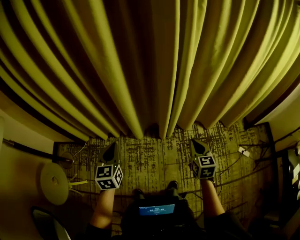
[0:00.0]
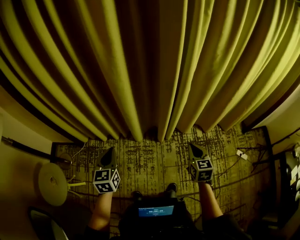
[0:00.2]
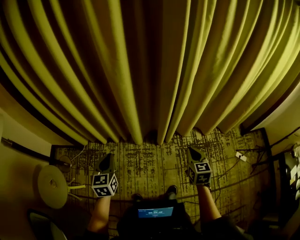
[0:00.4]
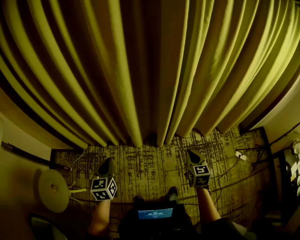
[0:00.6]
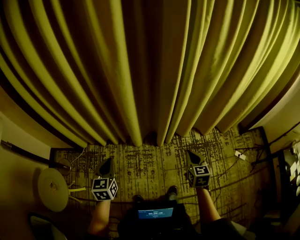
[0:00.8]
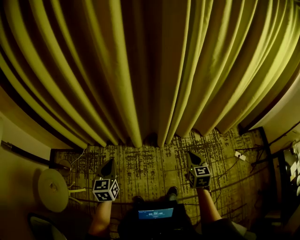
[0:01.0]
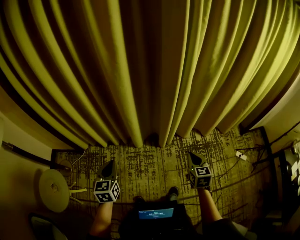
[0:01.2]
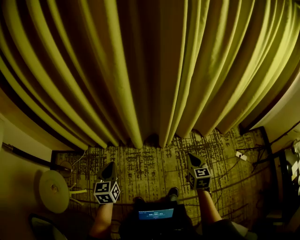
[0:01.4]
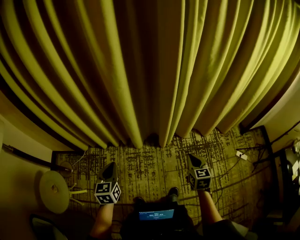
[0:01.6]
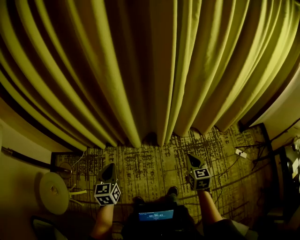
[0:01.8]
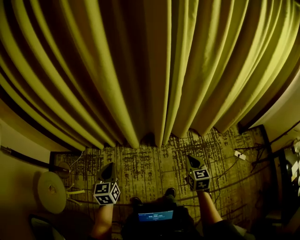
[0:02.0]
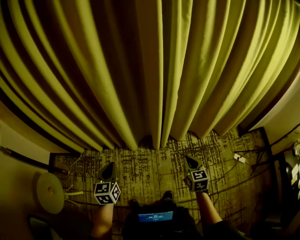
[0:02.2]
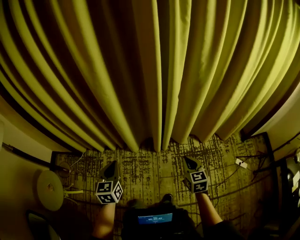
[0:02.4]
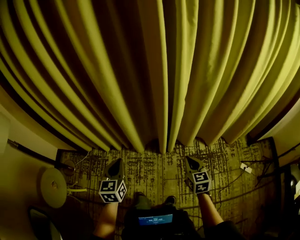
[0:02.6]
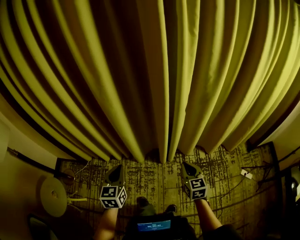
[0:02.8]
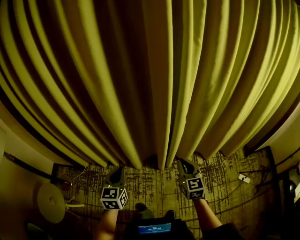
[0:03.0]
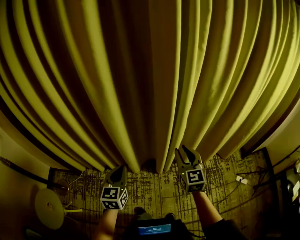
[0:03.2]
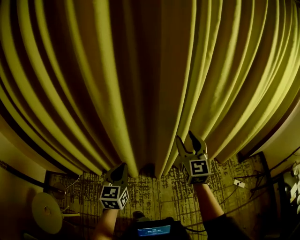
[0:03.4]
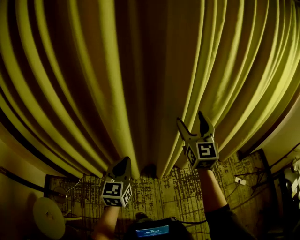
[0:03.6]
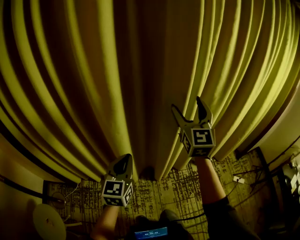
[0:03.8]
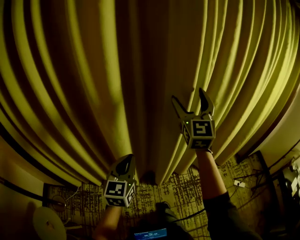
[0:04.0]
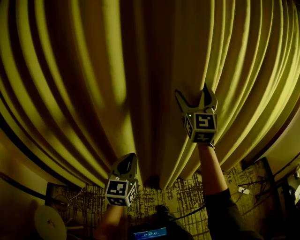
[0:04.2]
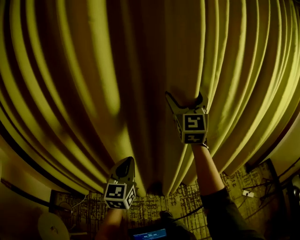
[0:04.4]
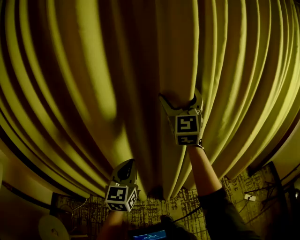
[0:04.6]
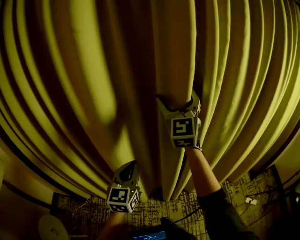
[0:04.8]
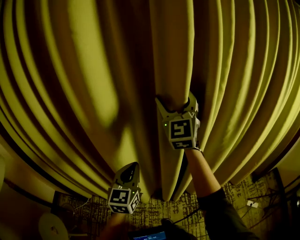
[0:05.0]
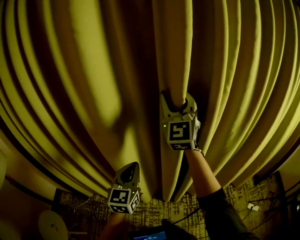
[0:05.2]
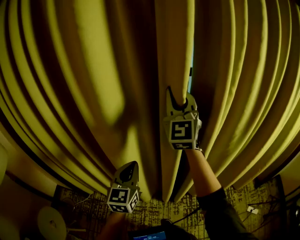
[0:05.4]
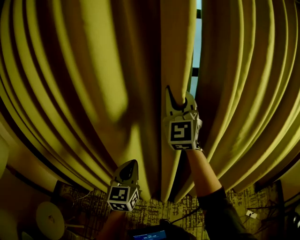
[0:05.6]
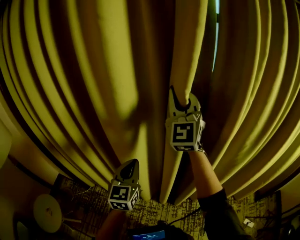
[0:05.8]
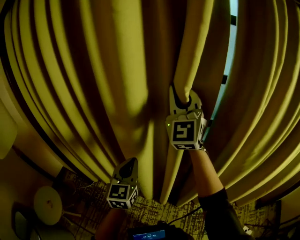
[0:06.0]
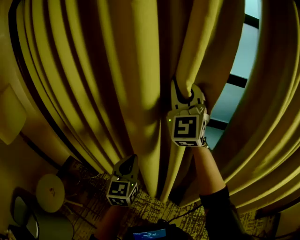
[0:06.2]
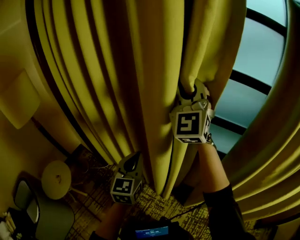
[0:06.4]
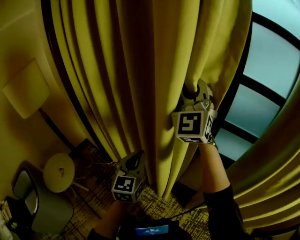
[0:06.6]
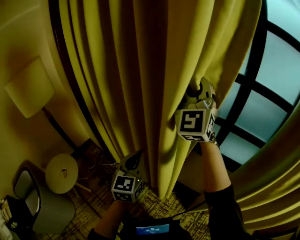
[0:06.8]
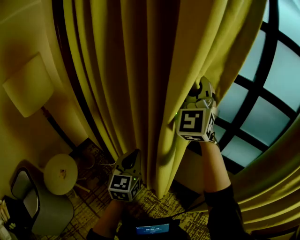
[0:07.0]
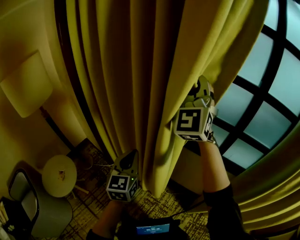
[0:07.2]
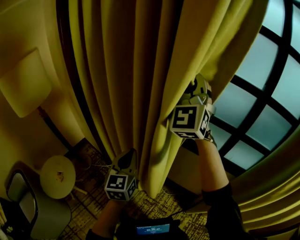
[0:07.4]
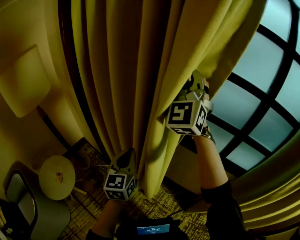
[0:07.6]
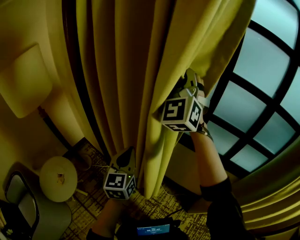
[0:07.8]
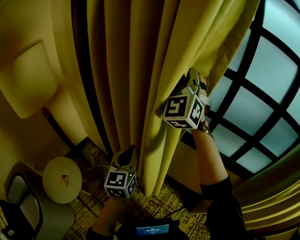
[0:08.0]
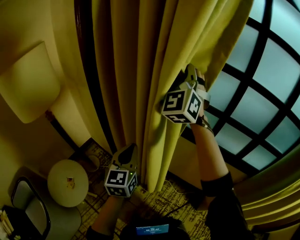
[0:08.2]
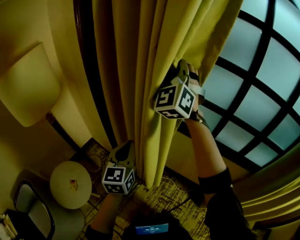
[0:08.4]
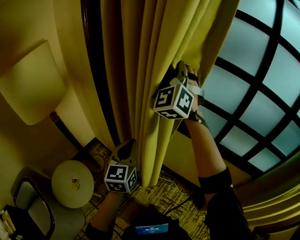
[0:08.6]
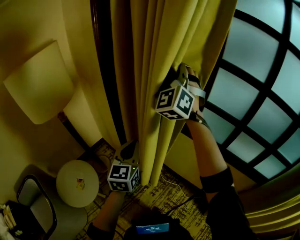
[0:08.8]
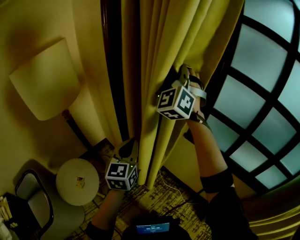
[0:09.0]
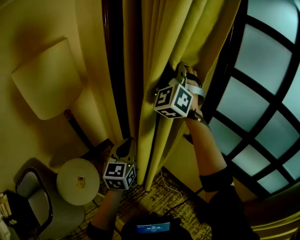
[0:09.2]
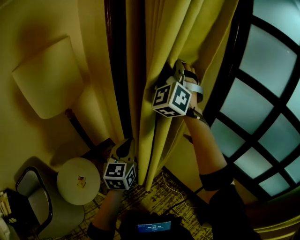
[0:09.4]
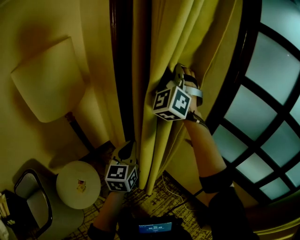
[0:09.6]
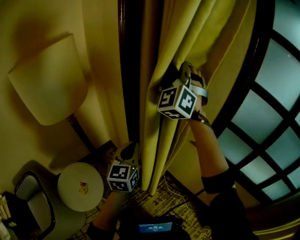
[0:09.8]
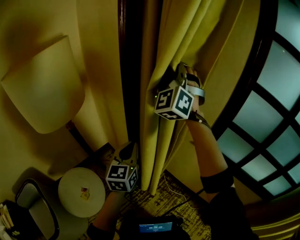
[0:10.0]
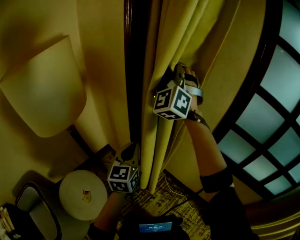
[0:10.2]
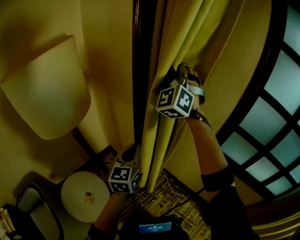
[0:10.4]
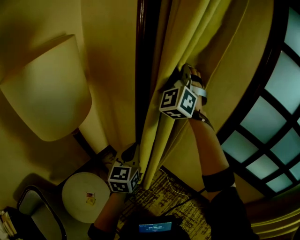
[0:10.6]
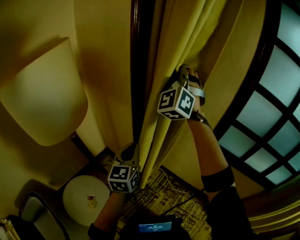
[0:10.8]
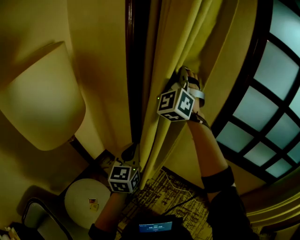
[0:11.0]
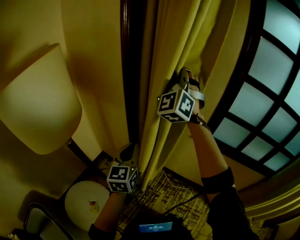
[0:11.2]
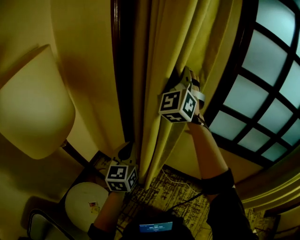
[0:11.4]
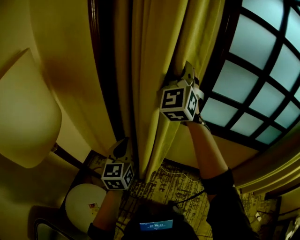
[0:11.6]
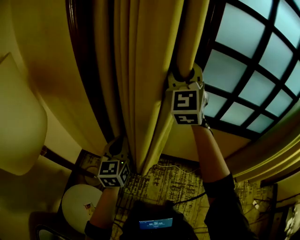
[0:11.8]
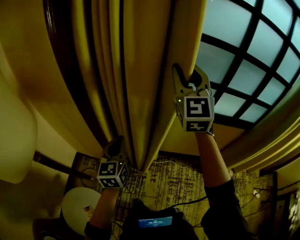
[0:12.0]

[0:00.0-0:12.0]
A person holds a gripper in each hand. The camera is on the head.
0:00.0 to 0:01.6: The left gripper goes roughly 10 cm backward and to the left; the right gripper is displaced backward by approximately 5 cm.
0:01.6 to 0:03.0: The right gripper is displaced forward and upward by about 15 cm; the left gripper travels to the right and forward by approximately 15 cm.
0:03.0 to 0:04.4: The left gripper goes about 25 cm forward and upward; the right gripper moves upward and forward, about 50 cm, tilts its fingers some 40 degrees upward, and opens.
0:04.4 to 0:06.0: The right gripper goes roughly 15 cm to the left and forward, changes its angle by about 20 degrees, and closes its fingers. The left gripper is displaced forward by roughly 5 cm.
0:06.0 to 0:07.6: The two grippers go roughly 35 cm to the left. The left gripper changes its angle by some 20 degrees.
0:07.6 to 0:09.0: The two grippers go some 35 cm to the left and forward.
0:09.0 to 0:10.4: The two grippers go roughly 20 cm to the left and forward.
0:10.4 to 0:12.0: The right gripper moves approximately 30 cm, and turns by some 40 degrees, while the left gripper changes place by approximately 10 cm, and changes its angle by about 30 degrees.

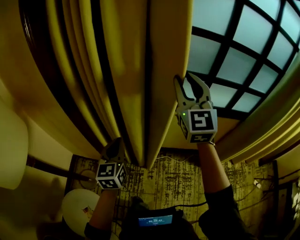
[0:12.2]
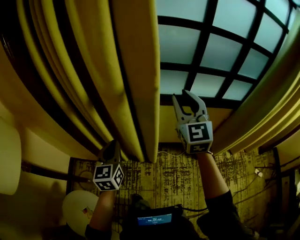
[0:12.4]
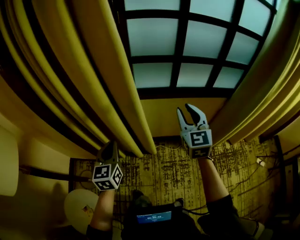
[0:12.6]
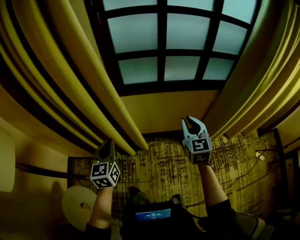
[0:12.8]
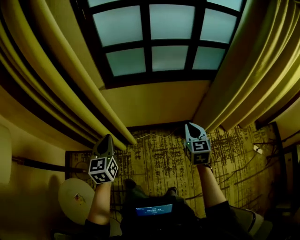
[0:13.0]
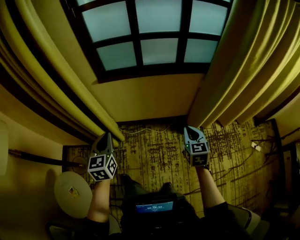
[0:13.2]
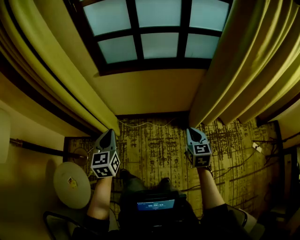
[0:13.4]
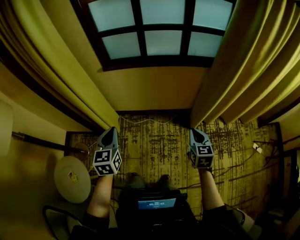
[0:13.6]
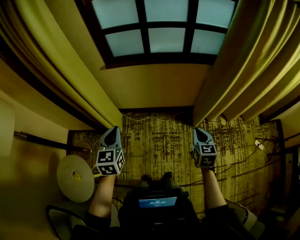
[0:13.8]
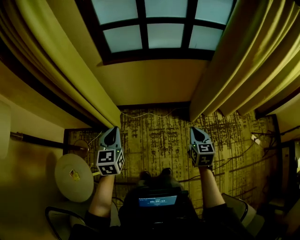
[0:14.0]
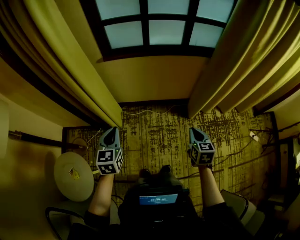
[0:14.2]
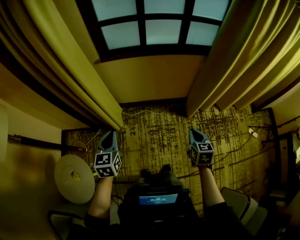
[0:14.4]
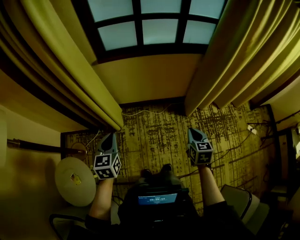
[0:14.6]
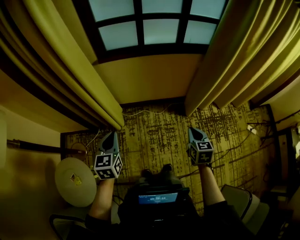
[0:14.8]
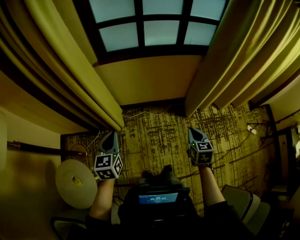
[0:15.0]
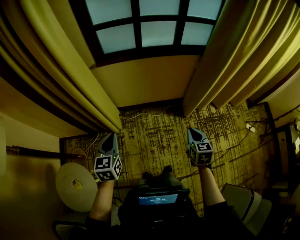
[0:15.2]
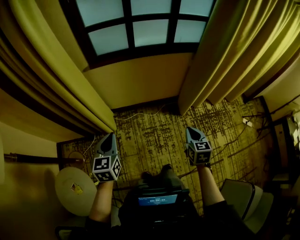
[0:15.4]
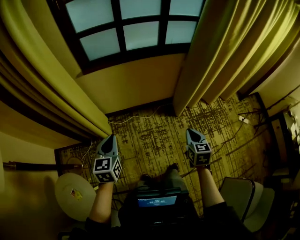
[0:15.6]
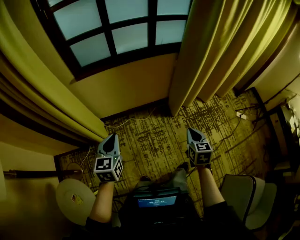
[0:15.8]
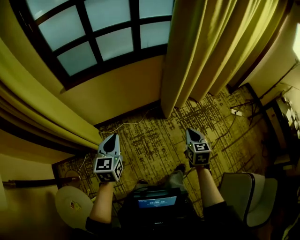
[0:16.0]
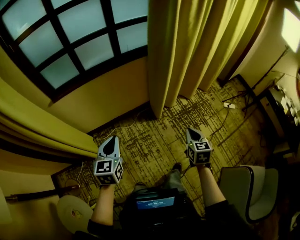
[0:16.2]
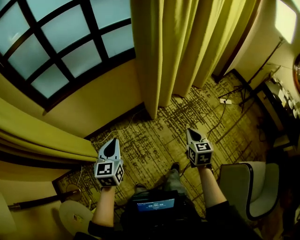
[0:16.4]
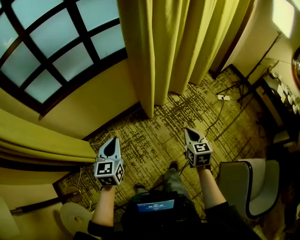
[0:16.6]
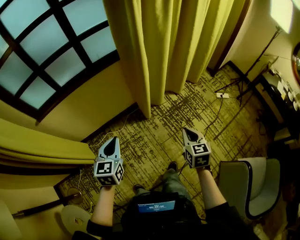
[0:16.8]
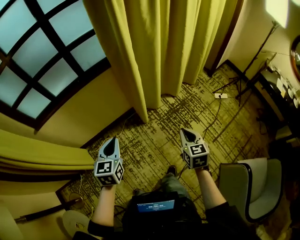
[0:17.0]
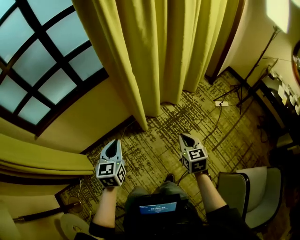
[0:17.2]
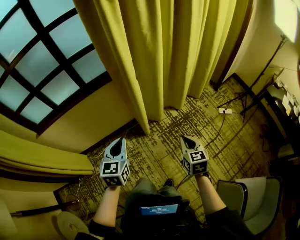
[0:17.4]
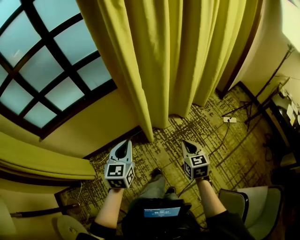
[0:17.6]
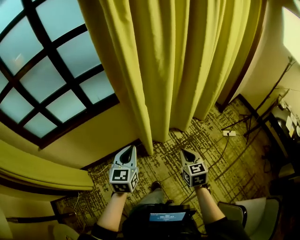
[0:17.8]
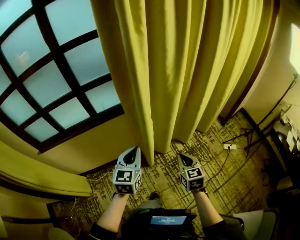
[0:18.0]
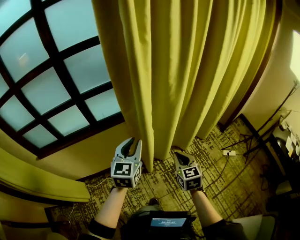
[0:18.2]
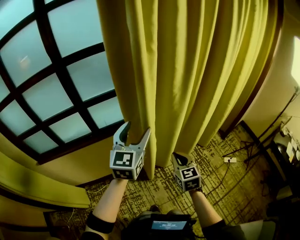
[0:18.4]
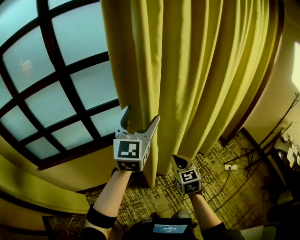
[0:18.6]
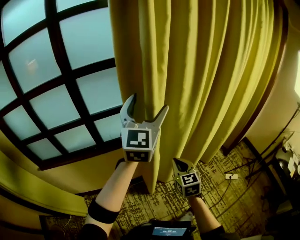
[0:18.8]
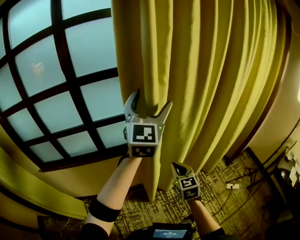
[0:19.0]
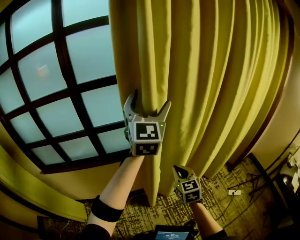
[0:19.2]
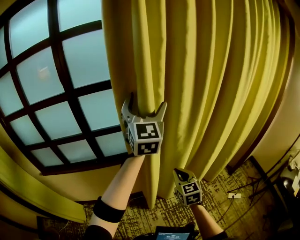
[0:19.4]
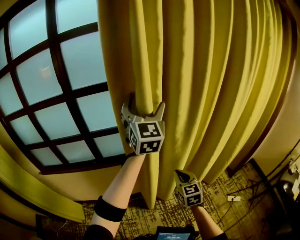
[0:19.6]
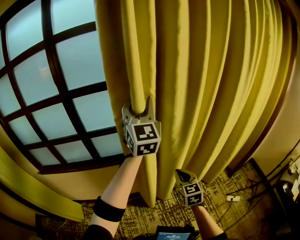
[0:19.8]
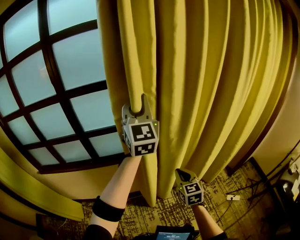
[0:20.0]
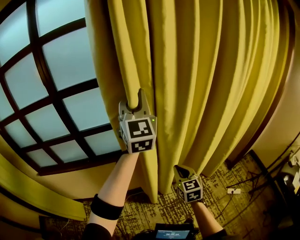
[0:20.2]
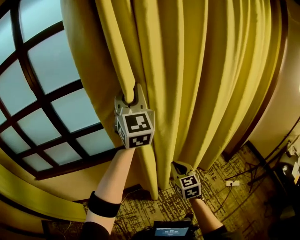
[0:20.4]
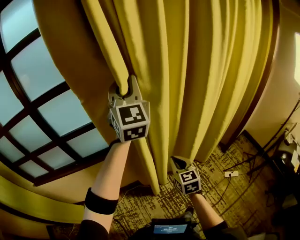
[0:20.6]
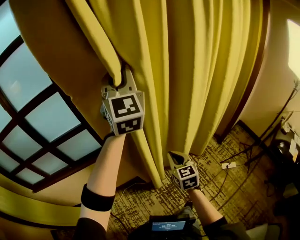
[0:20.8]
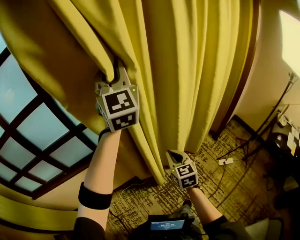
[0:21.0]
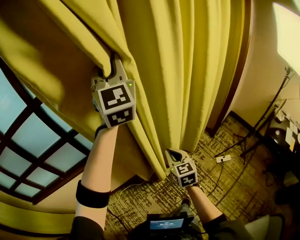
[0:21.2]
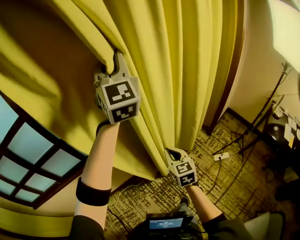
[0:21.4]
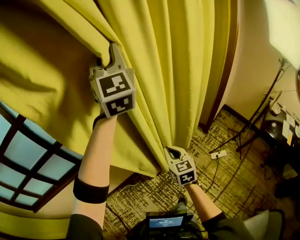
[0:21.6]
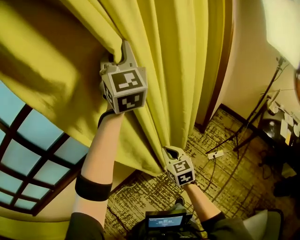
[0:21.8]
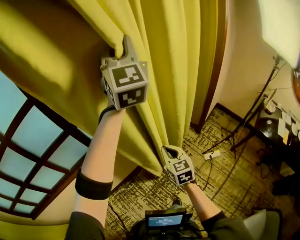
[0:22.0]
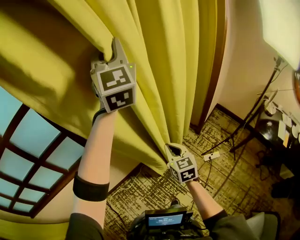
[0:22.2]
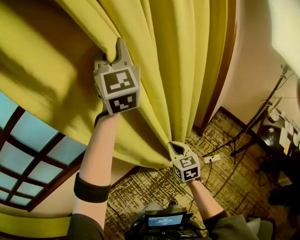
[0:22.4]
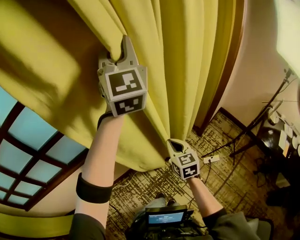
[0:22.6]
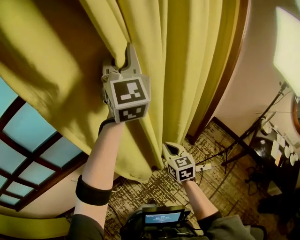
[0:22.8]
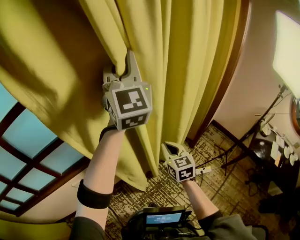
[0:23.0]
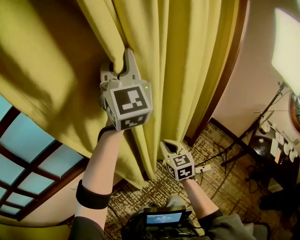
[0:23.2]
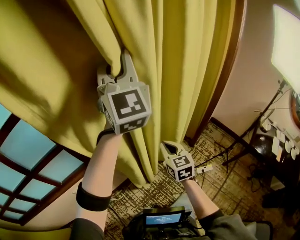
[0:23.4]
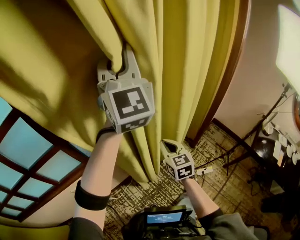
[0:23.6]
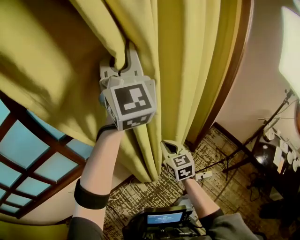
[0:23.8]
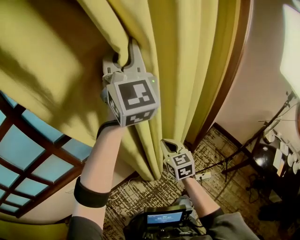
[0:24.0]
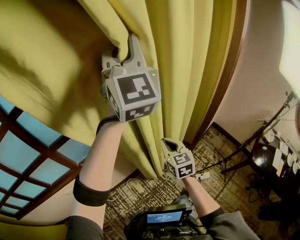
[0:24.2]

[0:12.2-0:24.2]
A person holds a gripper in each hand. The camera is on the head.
0:12.2 to 0:13.8: The right gripper heads to the right, downward and backward, covering roughly 70 cm, angles its fingers downward, by approximately 40 degrees, and closes; the left gripper shifts roughly 35 cm to the right and backward.
0:13.8 to 0:15.2: The right gripper heads to the left and backward, covering some 10 cm. Meanwhile the left gripper travels to the left by approximately 5 cm.
0:15.2 to 0:16.6: The right gripper moves to the right, approximately 30 cm, and rotates roughly 20 degrees, while the left gripper shifts roughly 35 cm to the right and forward, and changes its angle by roughly 30 degrees.
0:16.6 to 0:18.2: The right gripper goes approximately 30 cm forward; the left gripper shifts about 40 cm forward and to the right.
0:18.2 to 0:19.8: The left gripper goes roughly 35 cm upward and forward, rotates roughly 40 degrees, and opens, then closes once more, while the right gripper is displaced forward and upward by about 20 cm.
0:19.8 to 0:21.2: The grippers both shift to the right by some 25 cm. The left gripper closes.
0:21.2 to 0:22.6: The grippers both shift to the right and forward by about 25 cm.
0:22.6 to 0:24.2: The left gripper is displaced to the right and forward by about 10 cm; the right gripper moves forward and to the right, roughly 15 cm.
